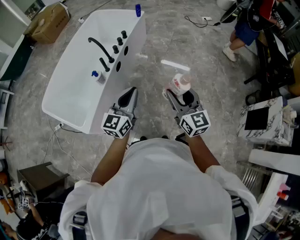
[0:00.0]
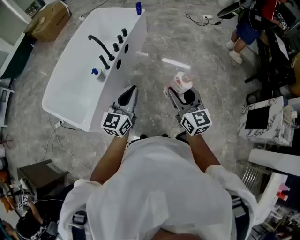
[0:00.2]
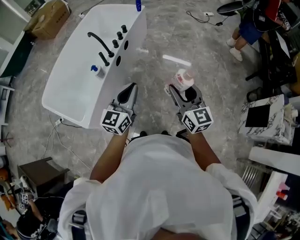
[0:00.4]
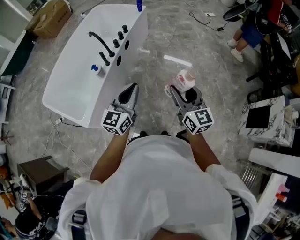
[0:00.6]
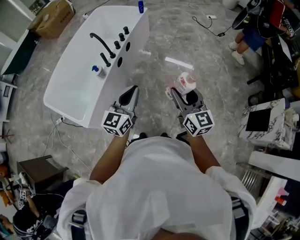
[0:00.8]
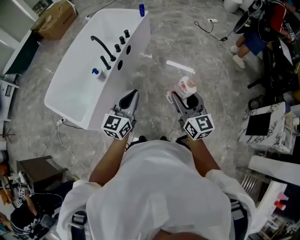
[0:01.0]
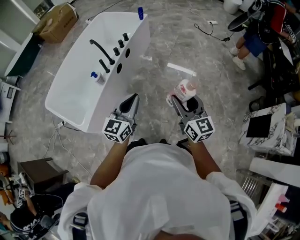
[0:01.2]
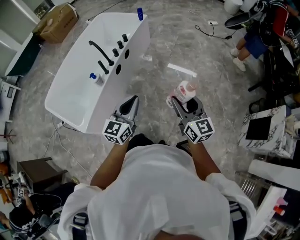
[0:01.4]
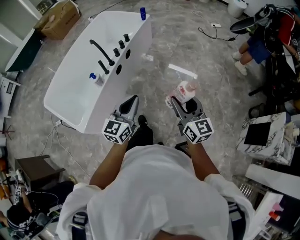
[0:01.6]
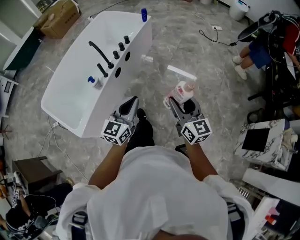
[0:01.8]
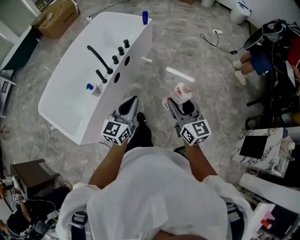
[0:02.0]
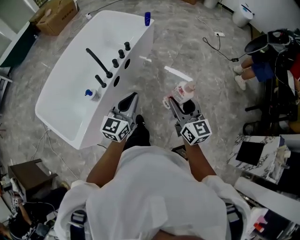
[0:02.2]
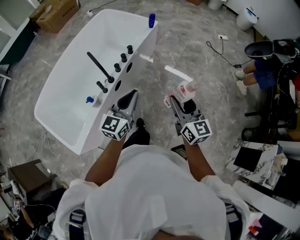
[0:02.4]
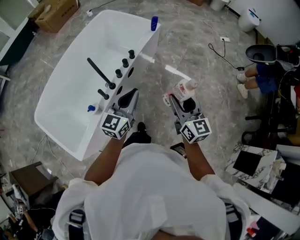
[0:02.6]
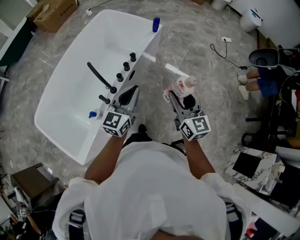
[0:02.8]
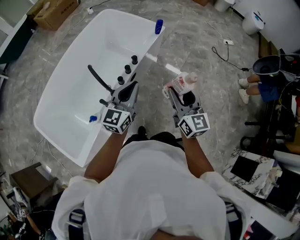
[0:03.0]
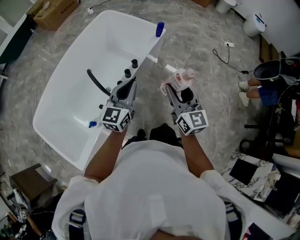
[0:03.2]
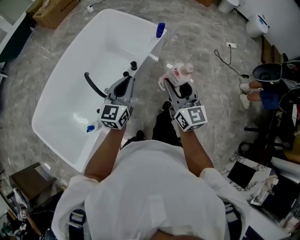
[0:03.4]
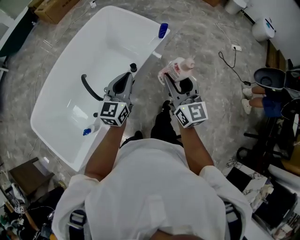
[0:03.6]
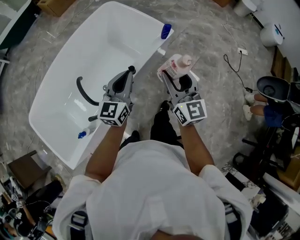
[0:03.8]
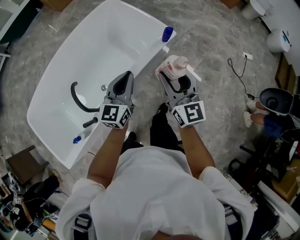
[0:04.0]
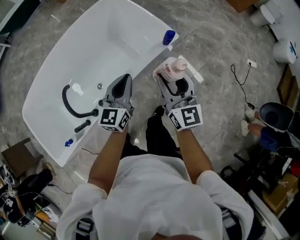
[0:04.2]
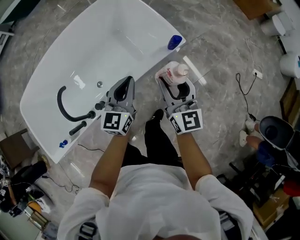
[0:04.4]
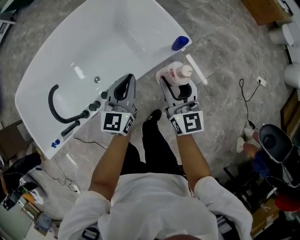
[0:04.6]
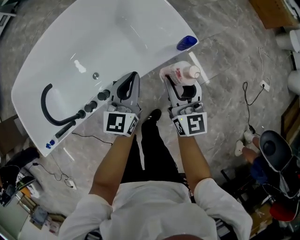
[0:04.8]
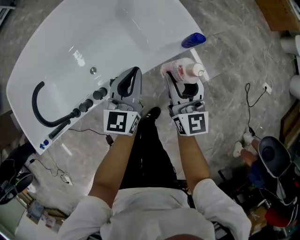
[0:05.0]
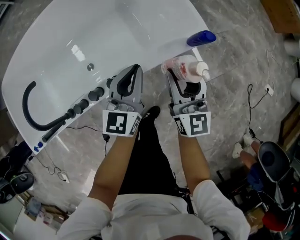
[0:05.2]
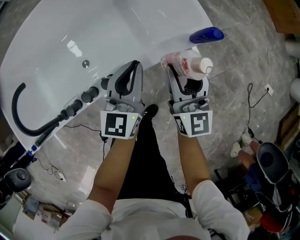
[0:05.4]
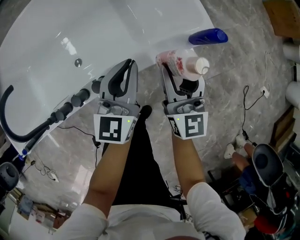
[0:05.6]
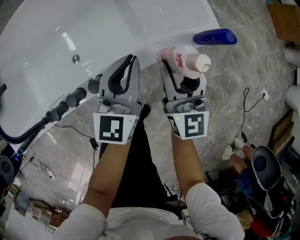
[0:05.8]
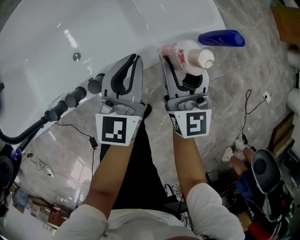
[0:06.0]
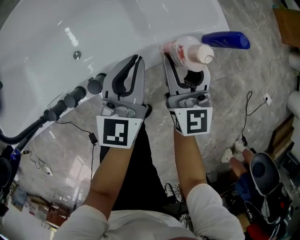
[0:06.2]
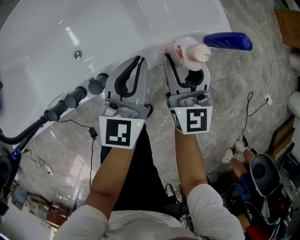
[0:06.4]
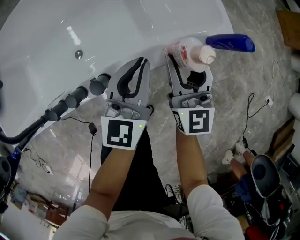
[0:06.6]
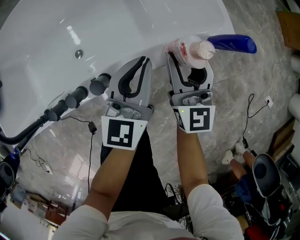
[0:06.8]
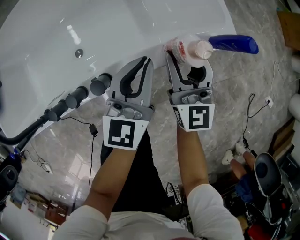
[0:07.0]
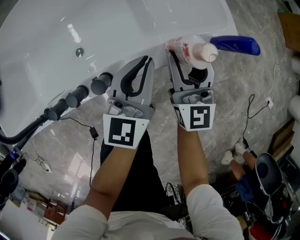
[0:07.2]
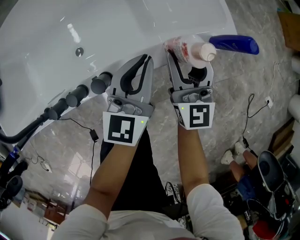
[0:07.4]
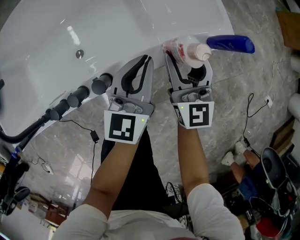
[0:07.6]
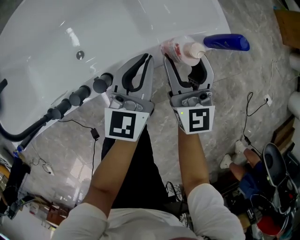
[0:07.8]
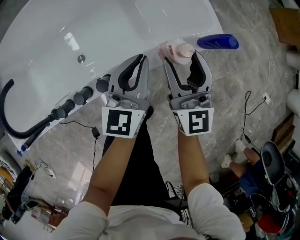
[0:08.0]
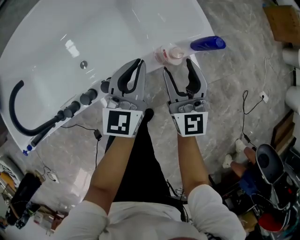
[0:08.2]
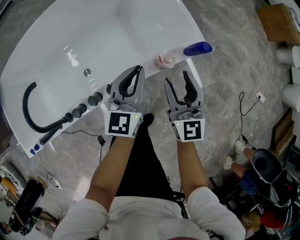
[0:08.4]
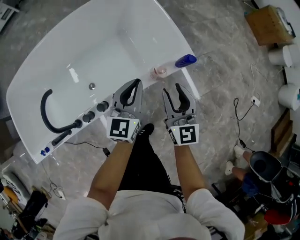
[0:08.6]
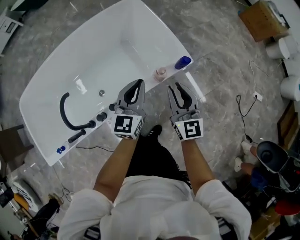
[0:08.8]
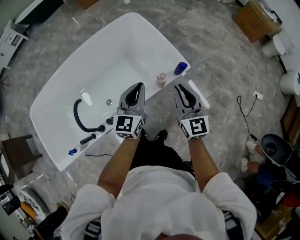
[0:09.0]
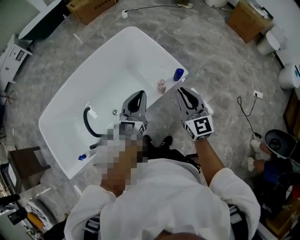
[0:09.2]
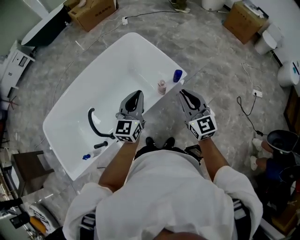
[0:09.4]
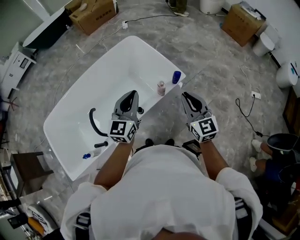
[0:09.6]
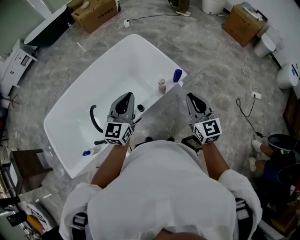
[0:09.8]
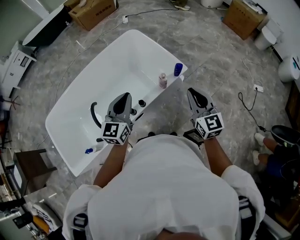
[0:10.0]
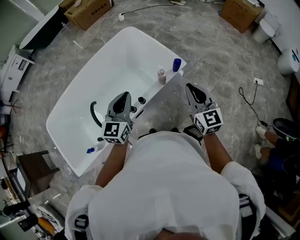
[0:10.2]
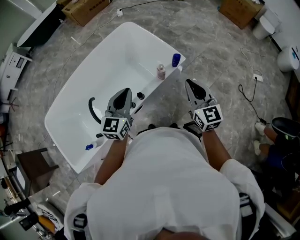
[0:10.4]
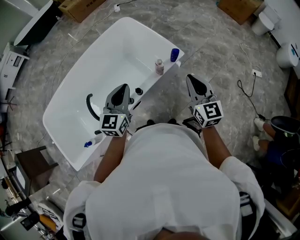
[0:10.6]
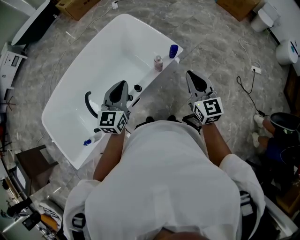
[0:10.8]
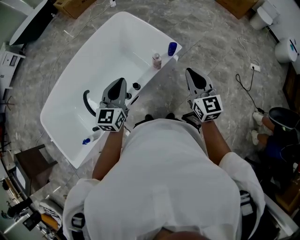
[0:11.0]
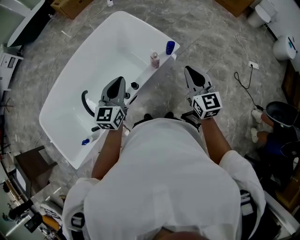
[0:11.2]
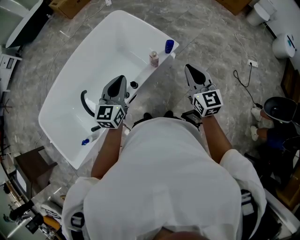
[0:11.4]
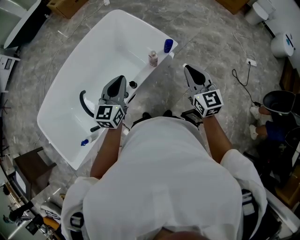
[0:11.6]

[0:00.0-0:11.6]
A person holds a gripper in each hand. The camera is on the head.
0:00.0 to 0:01.4: Both grippers travel together to the right, about 10 cm.
0:01.4 to 0:02.8: The pair of grippers is taken forward, approximately 40 cm.
0:02.8 to 0:04.4: The right gripper moves some 50 cm, and swivels some 20 degrees, while the left gripper changes place by approximately 40 cm, and swivels roughly 30 degrees.
0:04.4 to 0:05.8: Both grippers travel together downward and forward, about 25 cm.
0:05.8 to 0:07.2: The grippers make only small movements.
0:07.2 to 0:08.8: Both grippers travel together upward, approximately 25 cm. The right gripper closes up.
0:08.8 to 0:10.2: The right gripper goes about 20 cm upward and backward; the left gripper shifts roughly 20 cm upward, backward and to the left.
0:10.2 to 0:11.6: The grippers make only small movements.

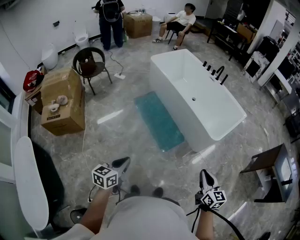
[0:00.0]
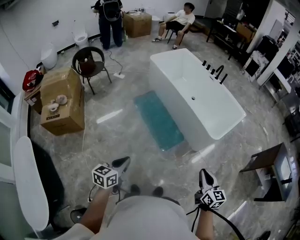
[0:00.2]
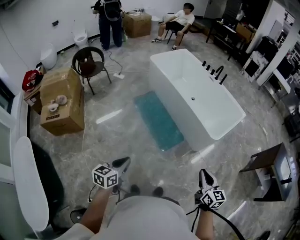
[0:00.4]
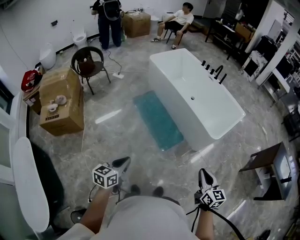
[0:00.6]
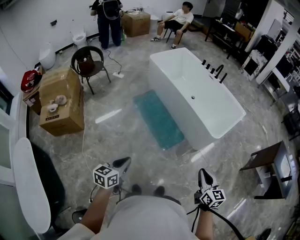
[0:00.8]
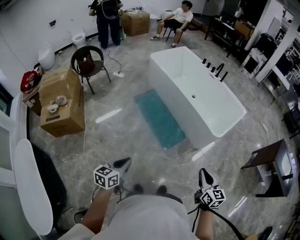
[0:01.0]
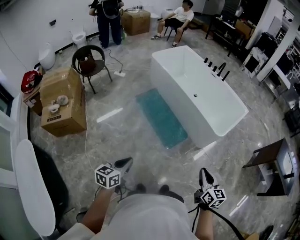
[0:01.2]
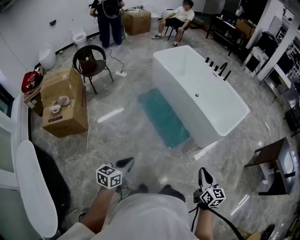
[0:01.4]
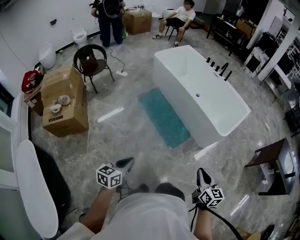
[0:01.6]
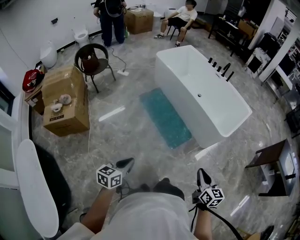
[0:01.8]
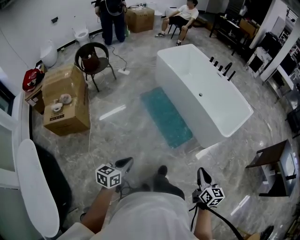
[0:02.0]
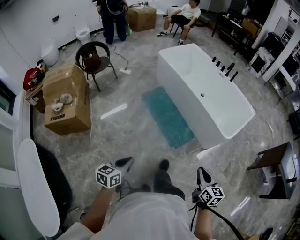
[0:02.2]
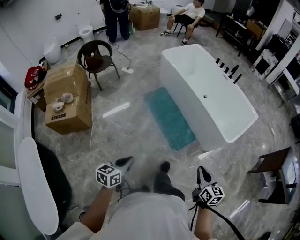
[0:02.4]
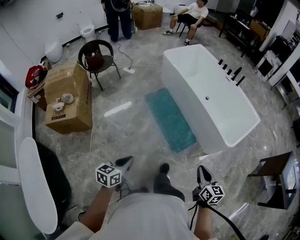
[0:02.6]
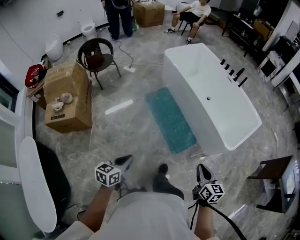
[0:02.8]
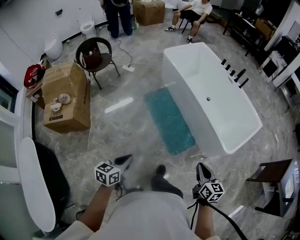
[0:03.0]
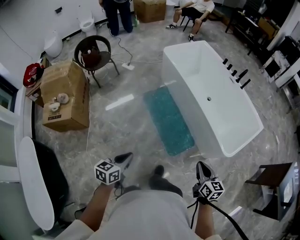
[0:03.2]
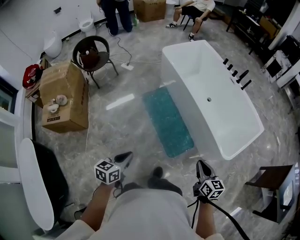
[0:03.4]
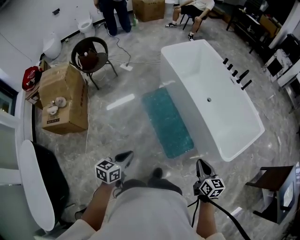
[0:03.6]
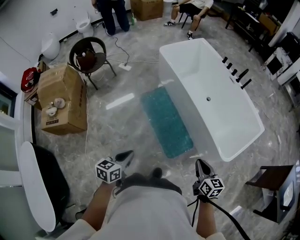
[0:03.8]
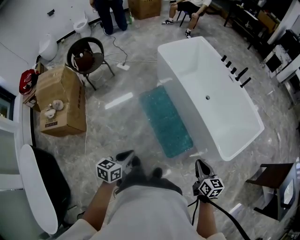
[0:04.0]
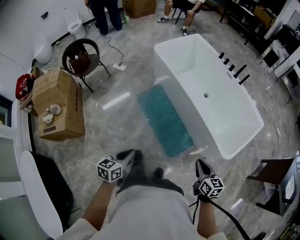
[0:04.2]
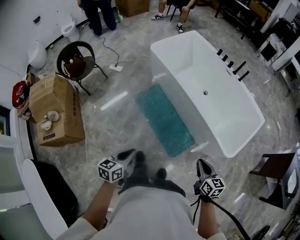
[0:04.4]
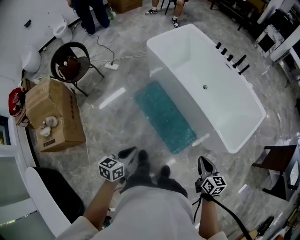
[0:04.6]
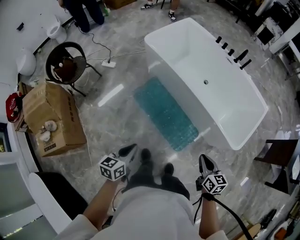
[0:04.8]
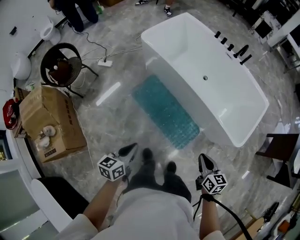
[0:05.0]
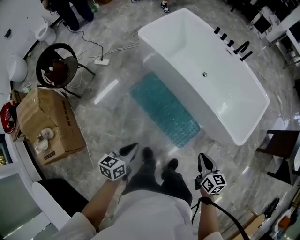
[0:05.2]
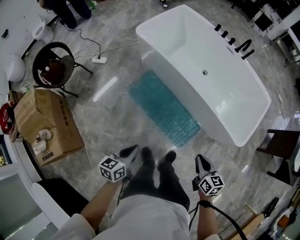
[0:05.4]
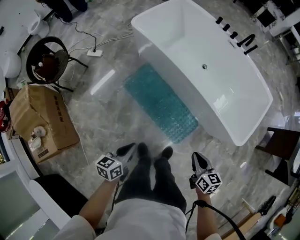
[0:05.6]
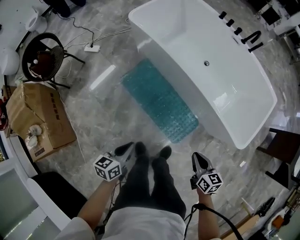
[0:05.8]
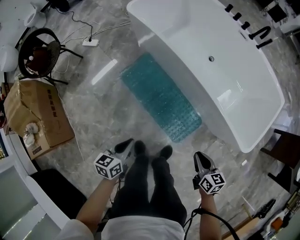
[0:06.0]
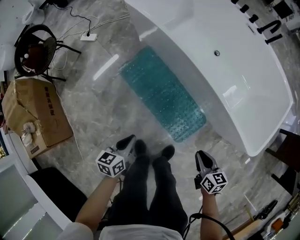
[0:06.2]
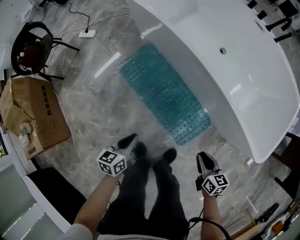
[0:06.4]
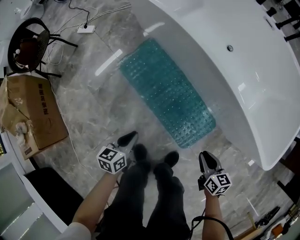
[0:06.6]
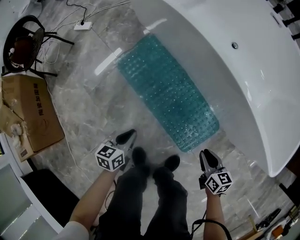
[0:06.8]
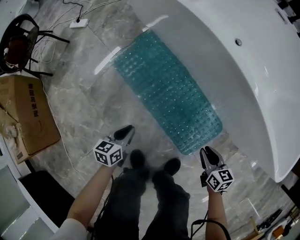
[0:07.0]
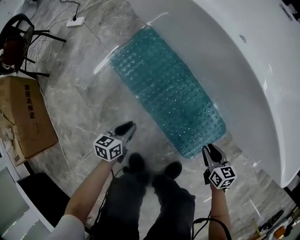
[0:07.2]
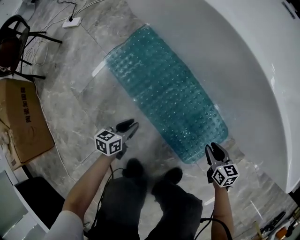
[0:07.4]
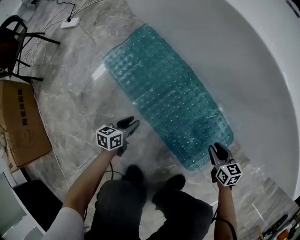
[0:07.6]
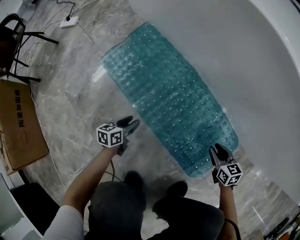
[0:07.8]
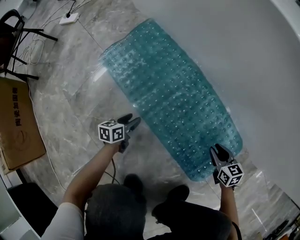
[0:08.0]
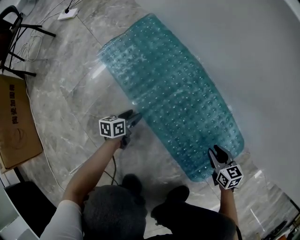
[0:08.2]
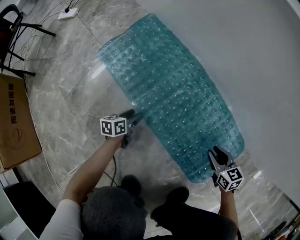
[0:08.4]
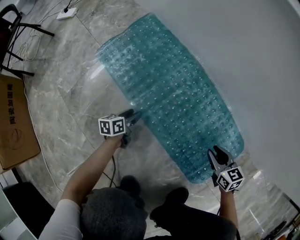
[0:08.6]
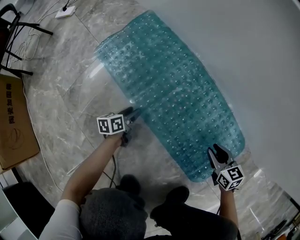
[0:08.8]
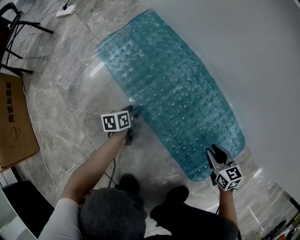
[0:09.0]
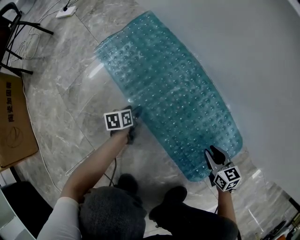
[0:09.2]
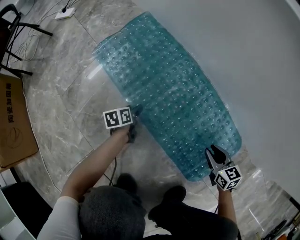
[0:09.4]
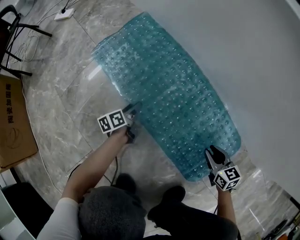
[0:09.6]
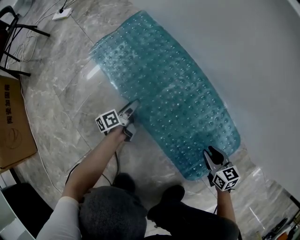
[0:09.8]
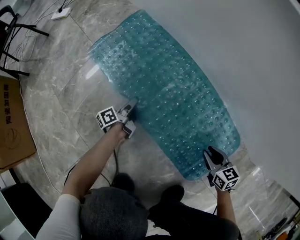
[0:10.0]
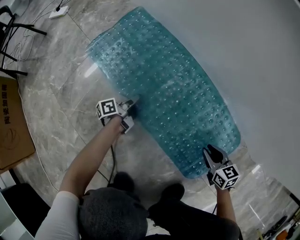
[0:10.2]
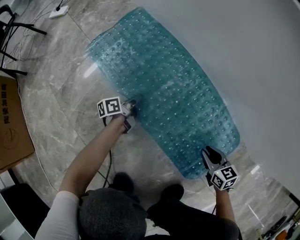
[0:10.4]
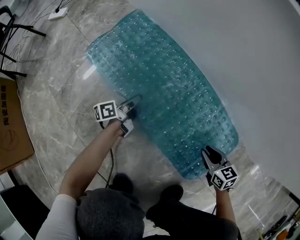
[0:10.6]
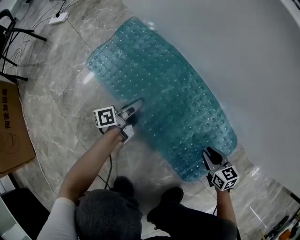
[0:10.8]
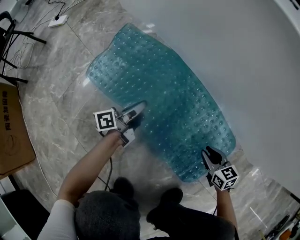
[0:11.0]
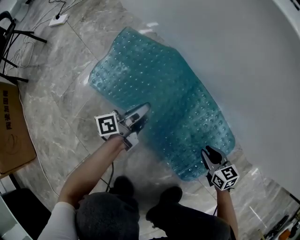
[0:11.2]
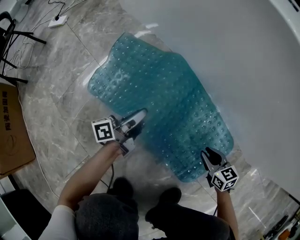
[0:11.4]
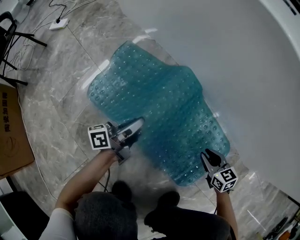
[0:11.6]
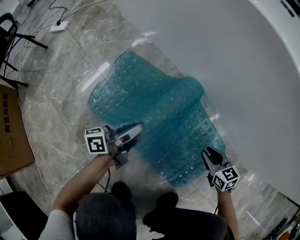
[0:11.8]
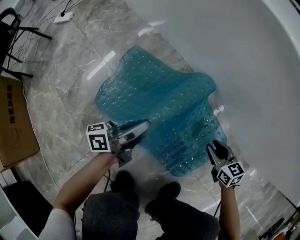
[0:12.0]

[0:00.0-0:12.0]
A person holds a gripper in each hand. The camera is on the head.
0:00.0 to 0:01.6: The grippers both shift to the left by some 10 cm.
0:01.6 to 0:03.0: The two grippers go about 20 cm forward.
0:03.0 to 0:04.4: Both grippers travel together forward, some 15 cm.
0:04.4 to 0:06.0: The two grippers go roughly 25 cm downward and forward.
0:06.0 to 0:07.6: Both grippers travel together downward, roughly 50 cm. The left gripper opens its fingers. The right gripper opens its fingers.
0:07.6 to 0:09.0: The left gripper shifts about 15 cm downward, and swivels roughly 20 degrees, while the right gripper heads downward, covering some 10 cm.
0:09.0 to 0:10.4: The left gripper is displaced to the right by approximately 5 cm, turns by some 30 degrees, and closes.
0:10.4 to 0:12.0: The right gripper heads upward and forward, covering roughly 10 cm. Meanwhile the left gripper shifts approximately 25 cm upward, and rotates roughly 30 degrees.
